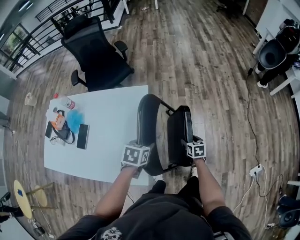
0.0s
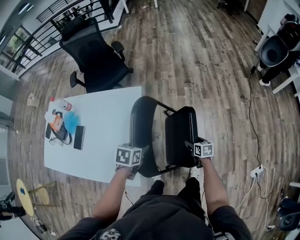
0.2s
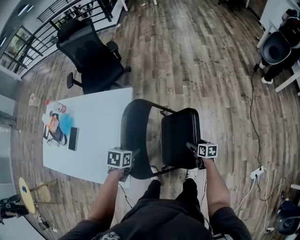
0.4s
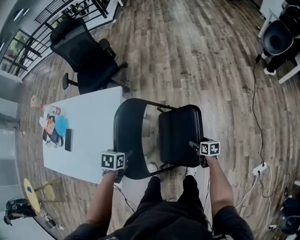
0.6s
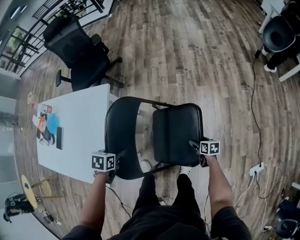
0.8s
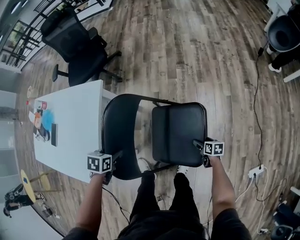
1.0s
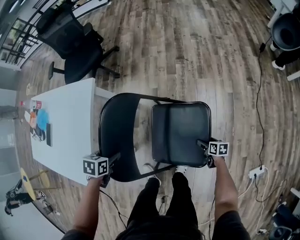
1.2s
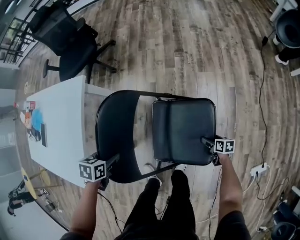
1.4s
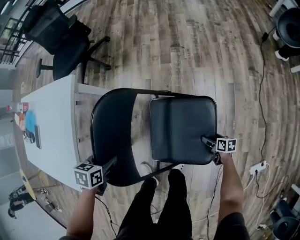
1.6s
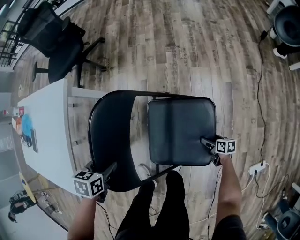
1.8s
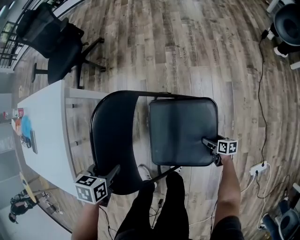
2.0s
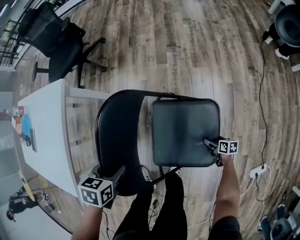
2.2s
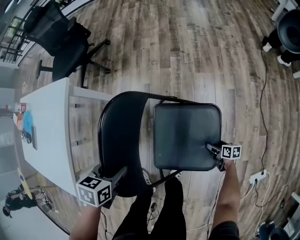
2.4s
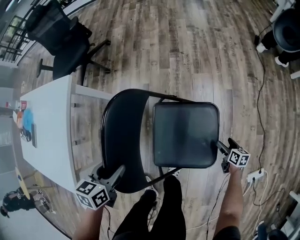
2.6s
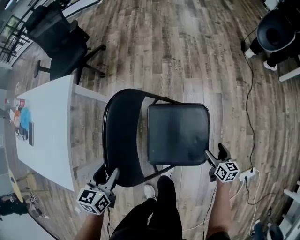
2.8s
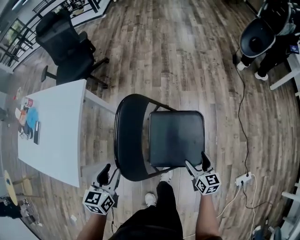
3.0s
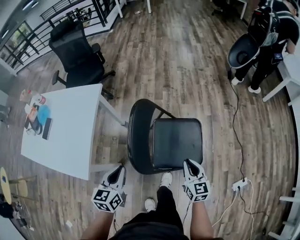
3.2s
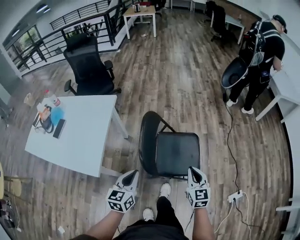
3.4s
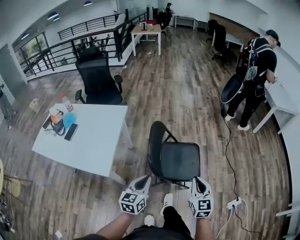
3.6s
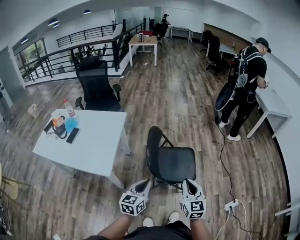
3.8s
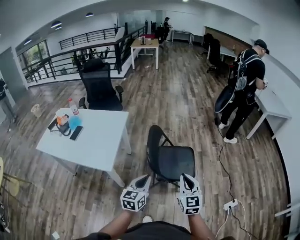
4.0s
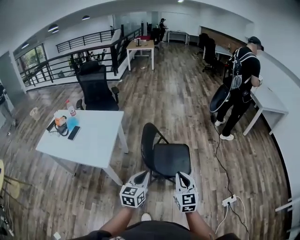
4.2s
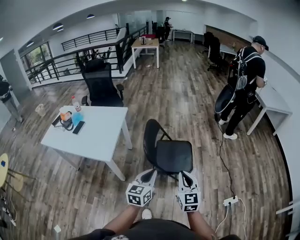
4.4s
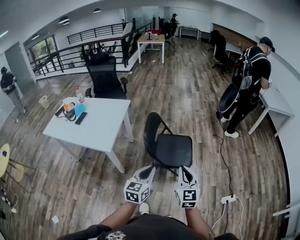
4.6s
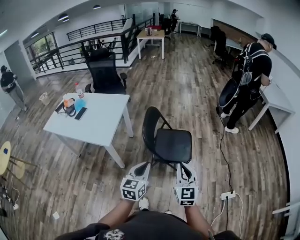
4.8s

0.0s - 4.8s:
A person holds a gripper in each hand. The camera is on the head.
0.0s - 1.6s: The right gripper is displaced to the right and downward by some 50 cm, and rotates roughly 30 degrees, while the left gripper heads to the right and downward, covering approximately 30 cm.
1.6s - 3.2s: The left gripper is displaced upward and backward by approximately 25 cm, angles its fingers upward, by roughly 40 degrees, and closes its fingers. Meanwhile the right gripper moves upward, approximately 40 cm, changes its angle by about 60 degrees, and closes up.
3.2s - 4.8s: The left gripper travels backward, upward and to the right by about 40 cm. Meanwhile the right gripper travels backward and upward by roughly 50 cm, and turns by approximately 30 degrees.

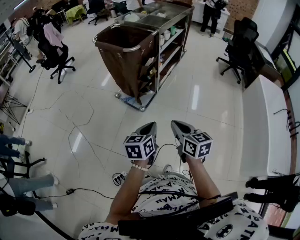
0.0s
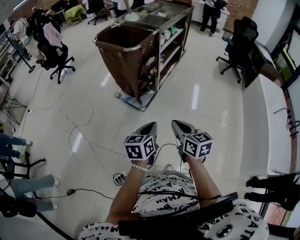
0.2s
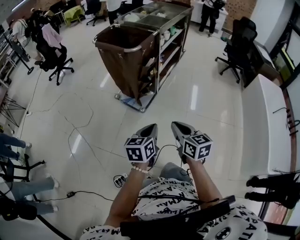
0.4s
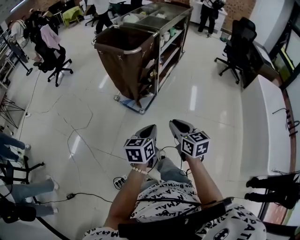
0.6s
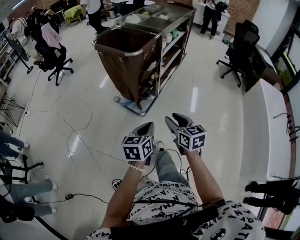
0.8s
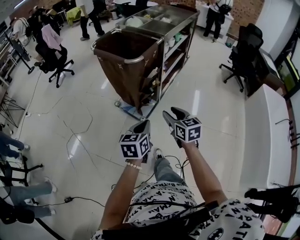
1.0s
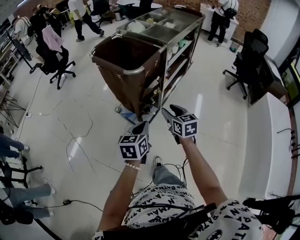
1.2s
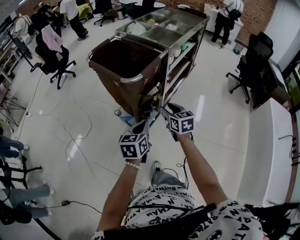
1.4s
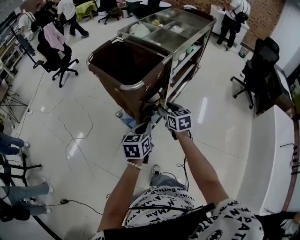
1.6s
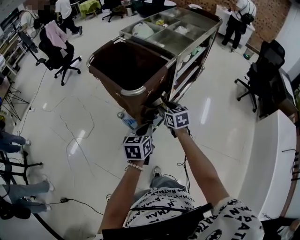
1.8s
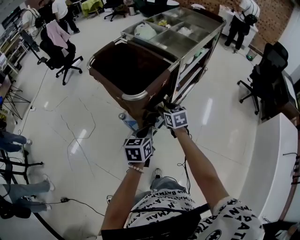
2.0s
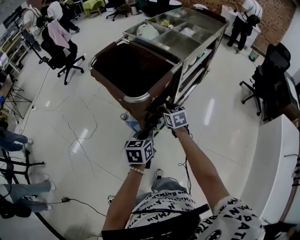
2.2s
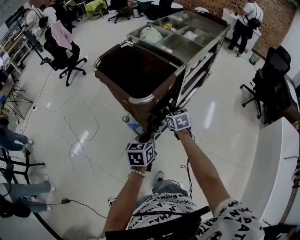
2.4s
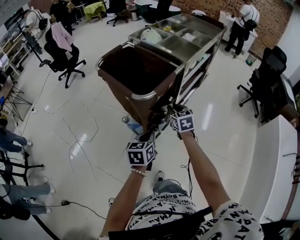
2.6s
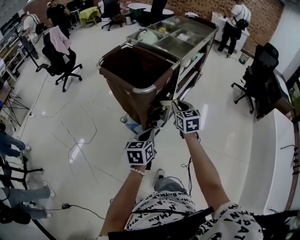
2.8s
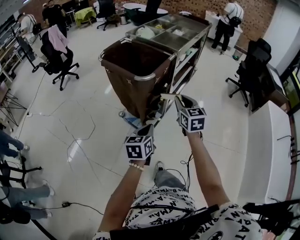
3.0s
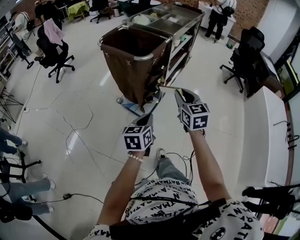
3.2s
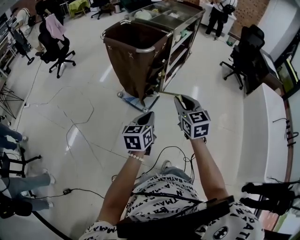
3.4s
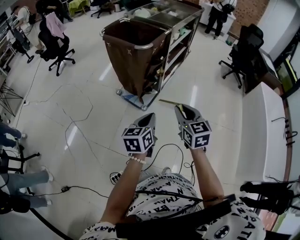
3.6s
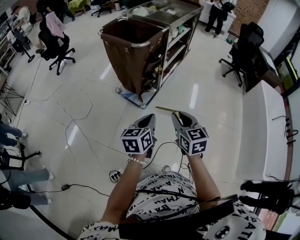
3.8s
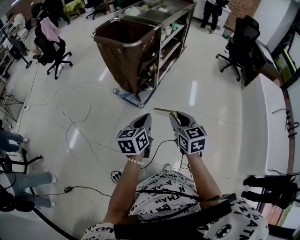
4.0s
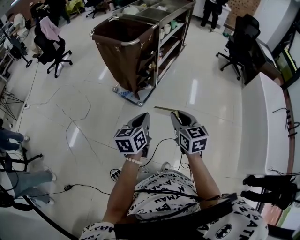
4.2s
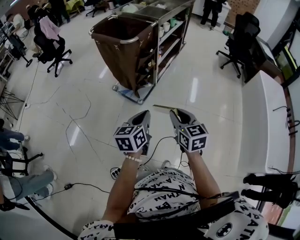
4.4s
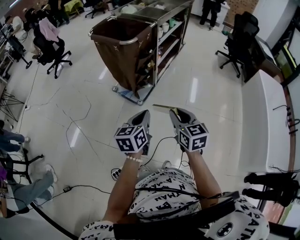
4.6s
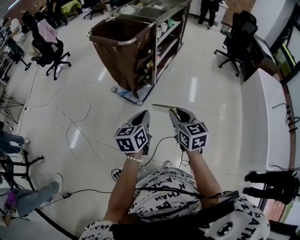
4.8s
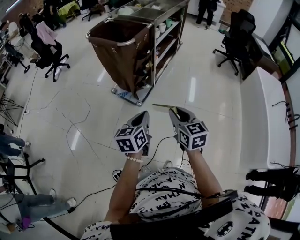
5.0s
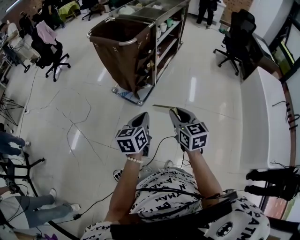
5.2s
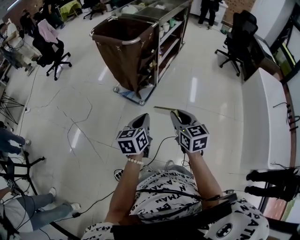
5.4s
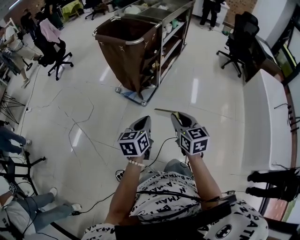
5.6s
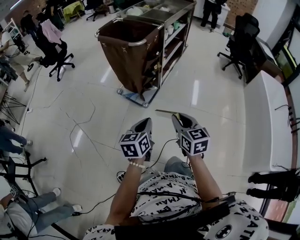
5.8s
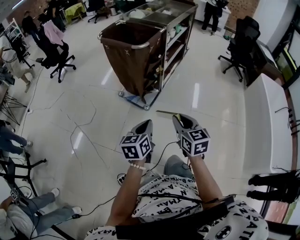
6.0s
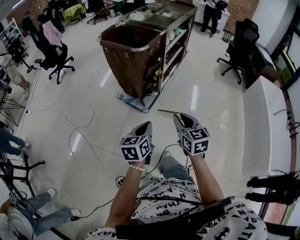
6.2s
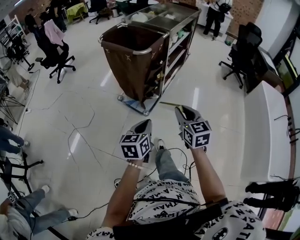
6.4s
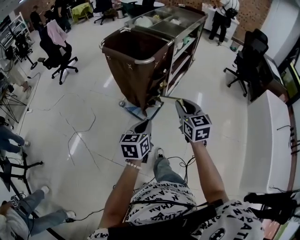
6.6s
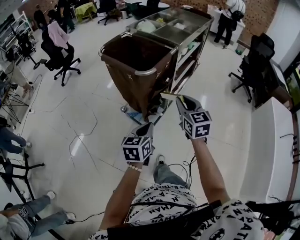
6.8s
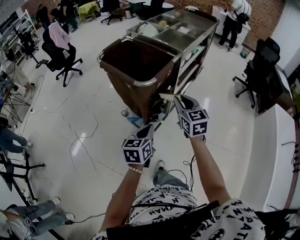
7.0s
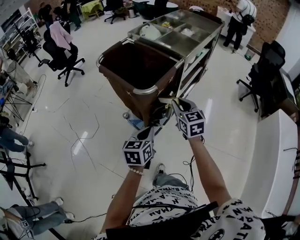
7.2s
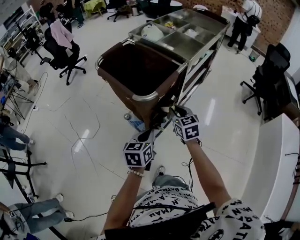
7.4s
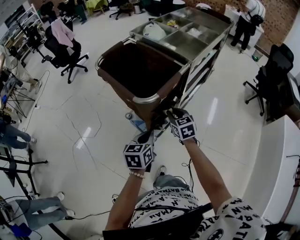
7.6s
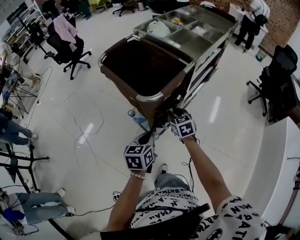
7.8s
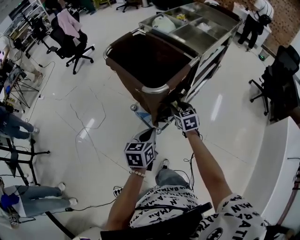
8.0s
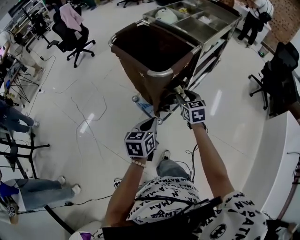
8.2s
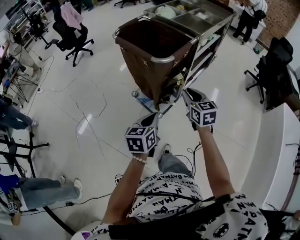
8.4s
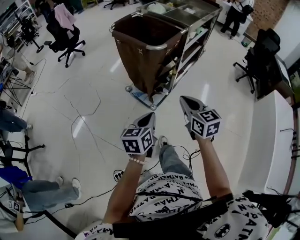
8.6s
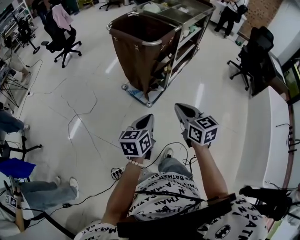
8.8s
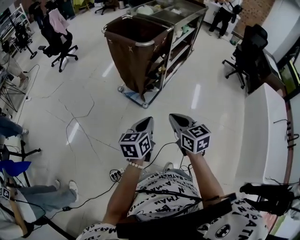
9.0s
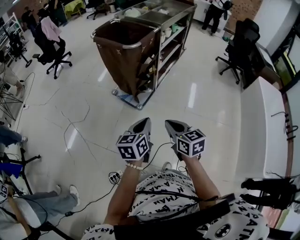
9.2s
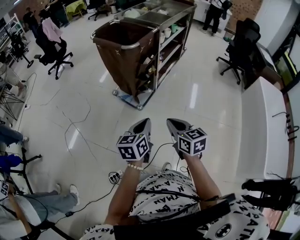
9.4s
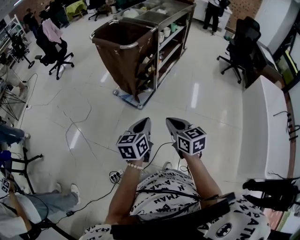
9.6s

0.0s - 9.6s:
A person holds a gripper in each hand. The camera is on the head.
0.0s - 1.6s: Both grippers travel together forward, approximately 40 cm. The right gripper opens.
1.6s - 3.2s: The right gripper travels backward and upward by some 25 cm, changes its angle by about 20 degrees, and closes its fingers; the left gripper shifts roughly 20 cm backward and to the left.
3.2s - 4.8s: The right gripper goes approximately 20 cm backward. Meanwhile the left gripper goes some 15 cm backward and to the right.
4.8s - 6.4s: The right gripper goes some 10 cm forward. Meanwhile the left gripper travels to the left by approximately 5 cm.
6.4s - 8.0s: The right gripper moves forward and downward, approximately 40 cm, and changes its angle by approximately 20 degrees; the left gripper is displaced forward by about 25 cm.
8.0s - 9.6s: The right gripper heads backward, covering approximately 50 cm, and closes its fingers. Meanwhile the left gripper shifts some 30 cm backward.

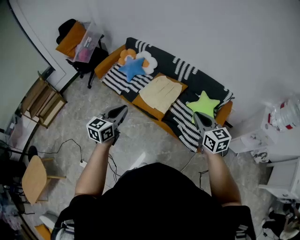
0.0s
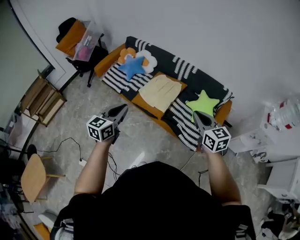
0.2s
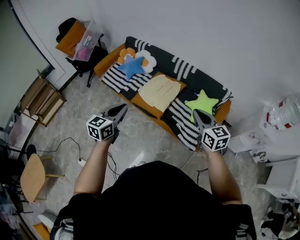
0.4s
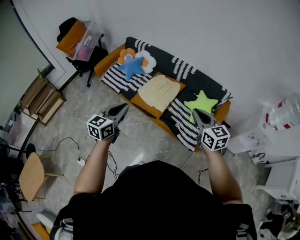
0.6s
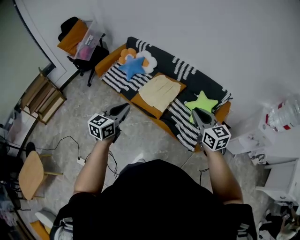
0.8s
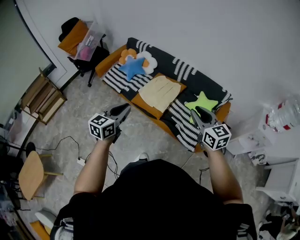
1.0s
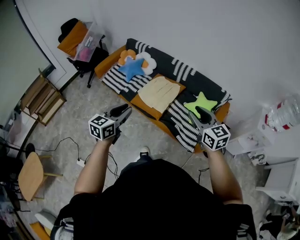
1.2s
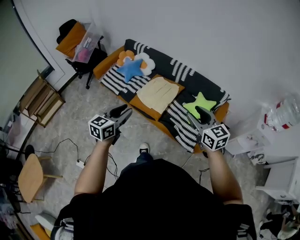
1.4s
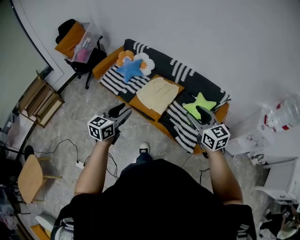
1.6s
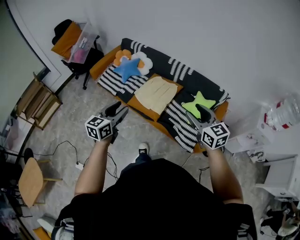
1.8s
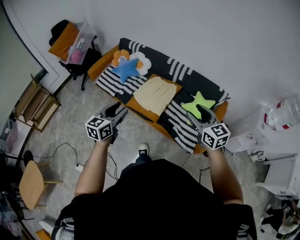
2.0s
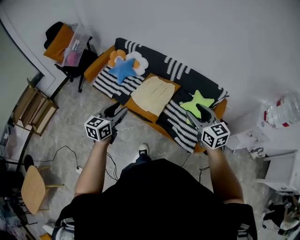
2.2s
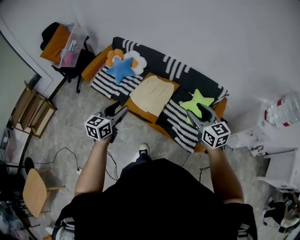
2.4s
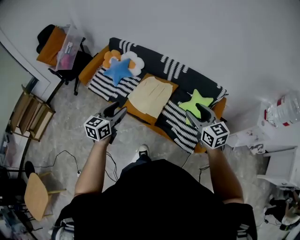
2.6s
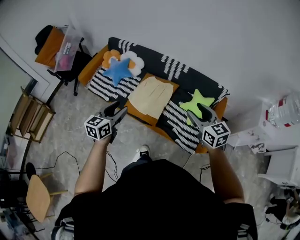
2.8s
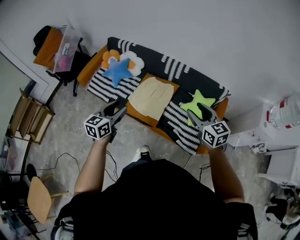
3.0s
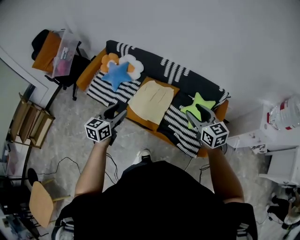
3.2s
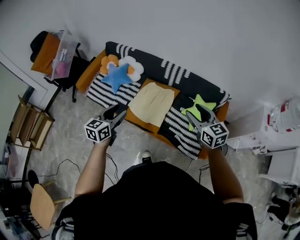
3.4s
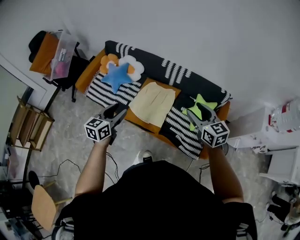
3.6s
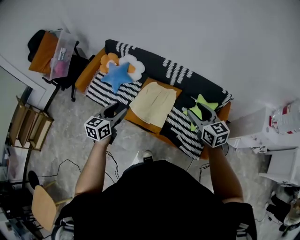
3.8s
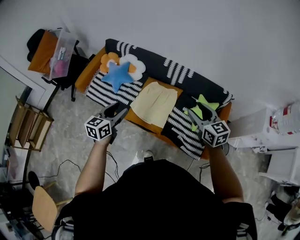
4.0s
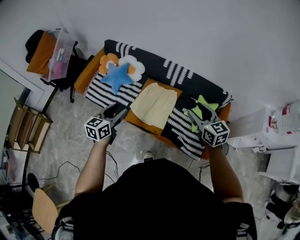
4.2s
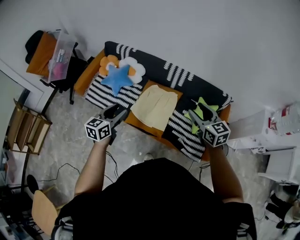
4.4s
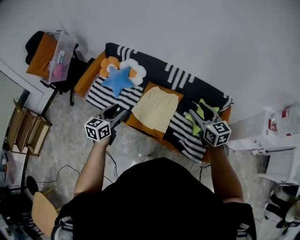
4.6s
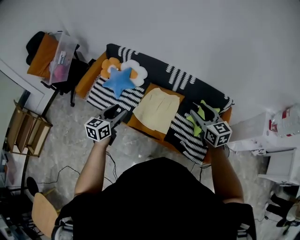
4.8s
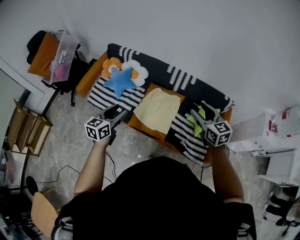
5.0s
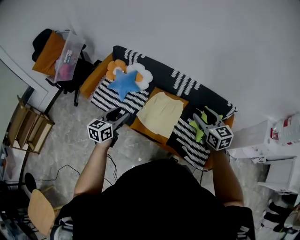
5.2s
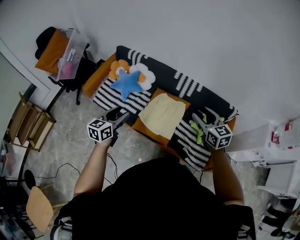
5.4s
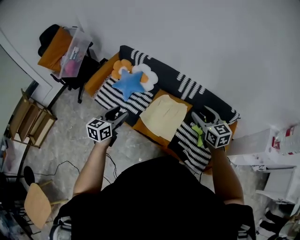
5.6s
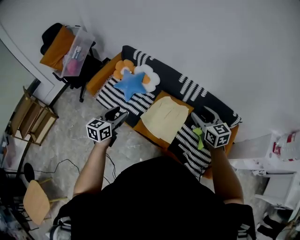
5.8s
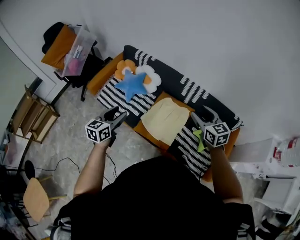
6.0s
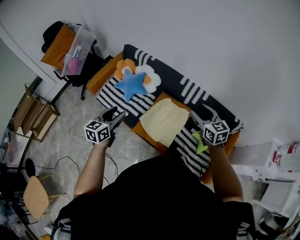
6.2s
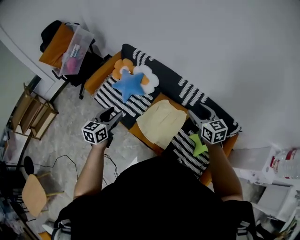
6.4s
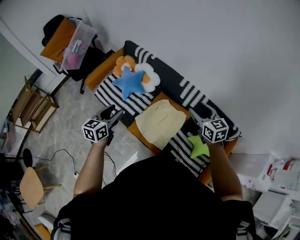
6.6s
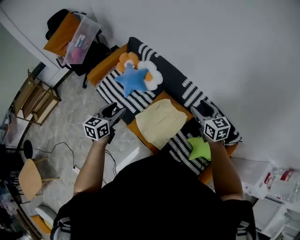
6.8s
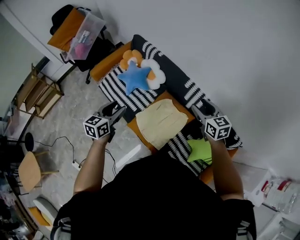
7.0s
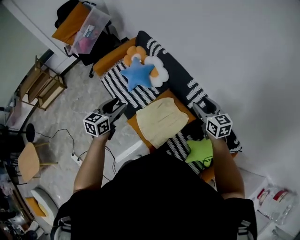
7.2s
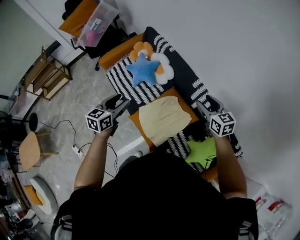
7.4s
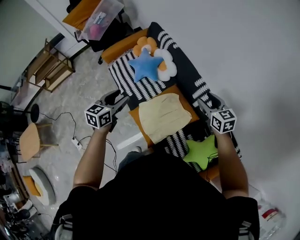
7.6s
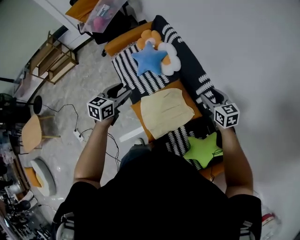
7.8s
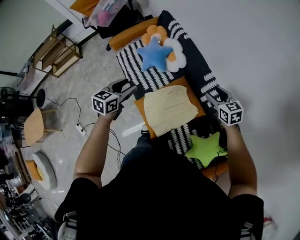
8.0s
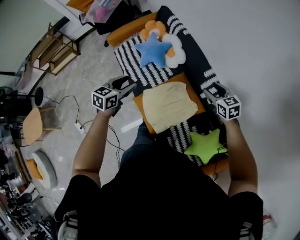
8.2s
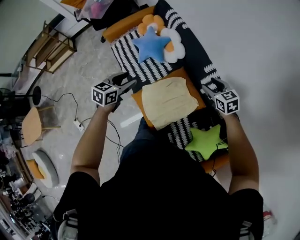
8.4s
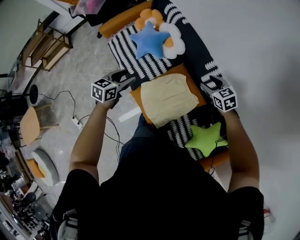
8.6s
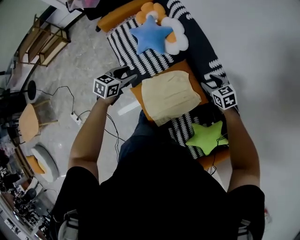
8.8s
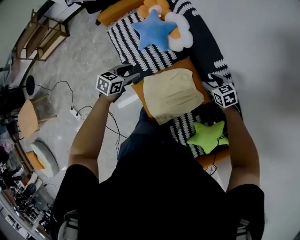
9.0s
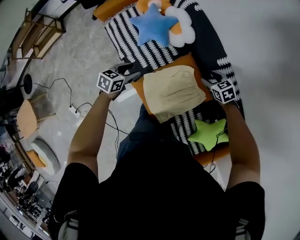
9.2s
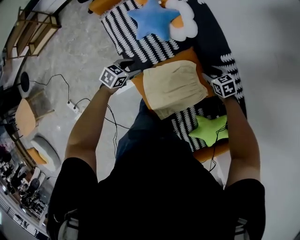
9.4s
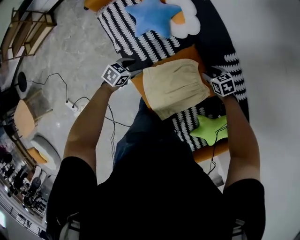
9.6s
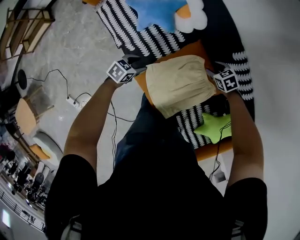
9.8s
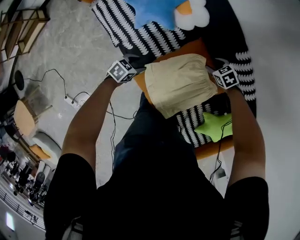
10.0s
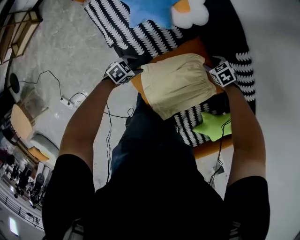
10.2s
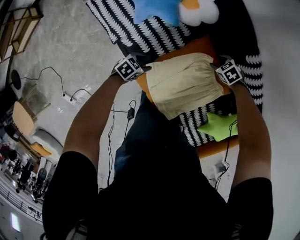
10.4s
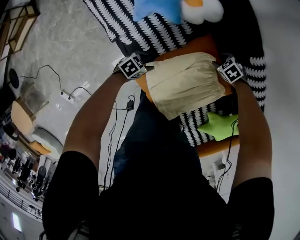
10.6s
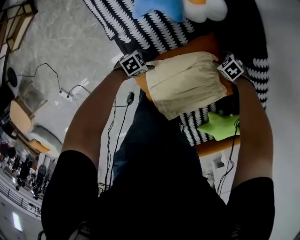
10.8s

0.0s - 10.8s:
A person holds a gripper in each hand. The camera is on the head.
0.0s - 1.6s: The left gripper opens. The right gripper opens its fingers.
1.6s - 3.0s: The grippers both shift forward by roughly 20 cm.
3.0s - 4.6s: The two grippers go approximately 15 cm forward and to the left.
4.6s - 6.2s: The right gripper shifts some 15 cm forward, while the left gripper moves forward, roughly 5 cm.
6.2s - 7.8s: The right gripper is displaced forward, downward and to the right by about 25 cm, and changes its angle by some 30 degrees, while the left gripper goes approximately 15 cm to the right, forward and downward, and swivels about 20 degrees.
7.8s - 9.2s: Both grippers move downward and forward, about 25 cm. The right gripper turns by about 30 degrees, while the left gripper turns by roughly 20 degrees.
9.2s - 10.8s: The grippers both shift downward by about 30 cm. The right gripper rotates about 40 degrees. Meanwhile the left gripper turns by roughly 40 degrees.
